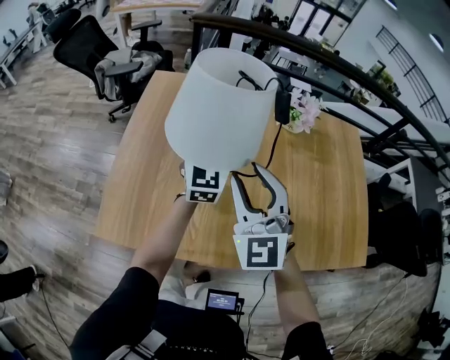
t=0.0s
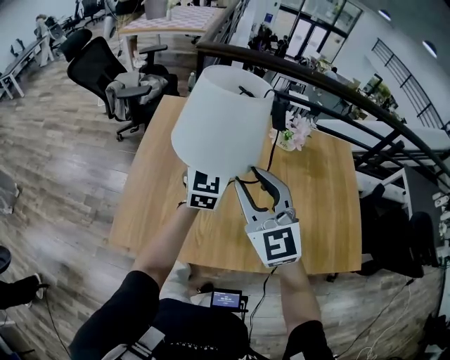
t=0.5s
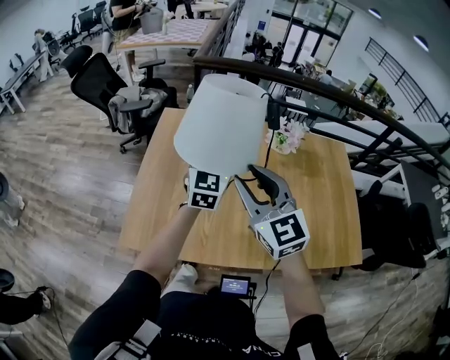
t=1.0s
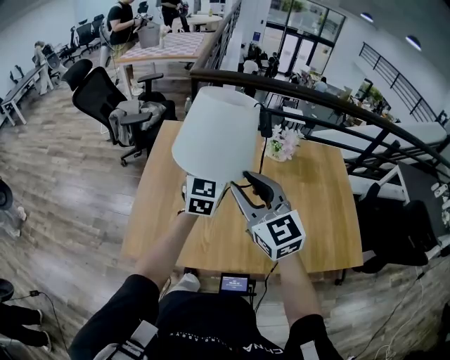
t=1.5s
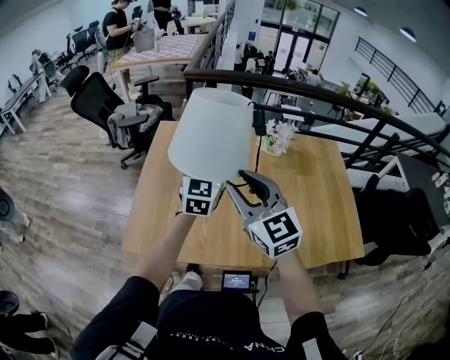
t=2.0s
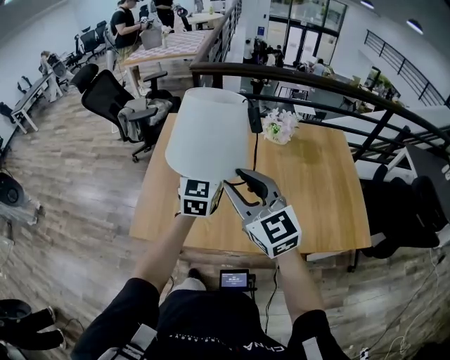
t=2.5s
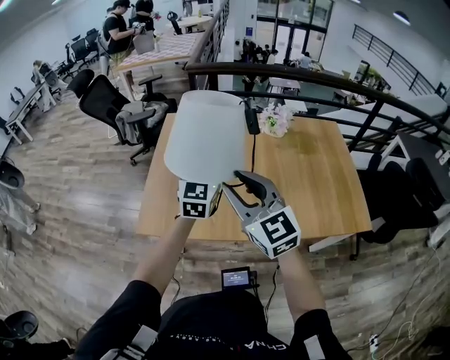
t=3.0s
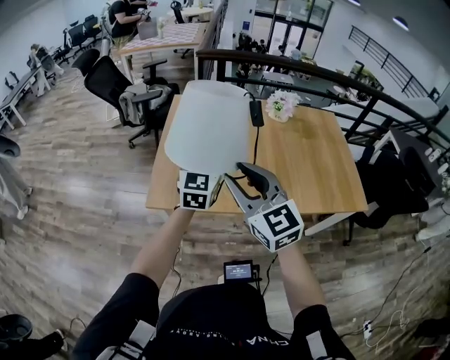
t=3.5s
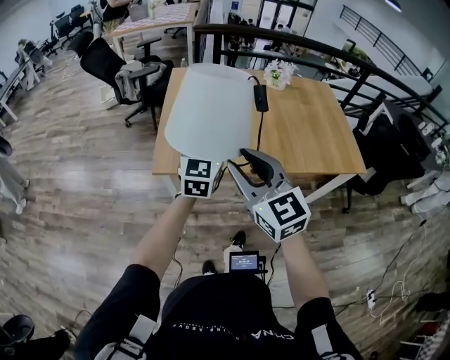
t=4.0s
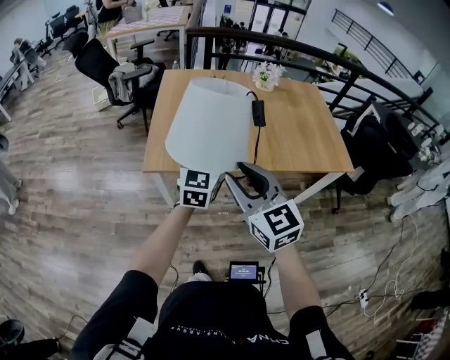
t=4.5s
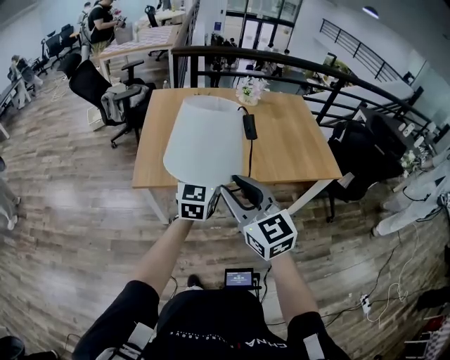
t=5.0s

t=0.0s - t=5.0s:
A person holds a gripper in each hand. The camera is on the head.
t=0.0s - t=2.5s: Both grippers move backward and upward, approximately 20 cm. The right gripper turns by some 30 degrees.
t=2.5s - t=5.0s: The two grippers go approximately 35 cm backward.

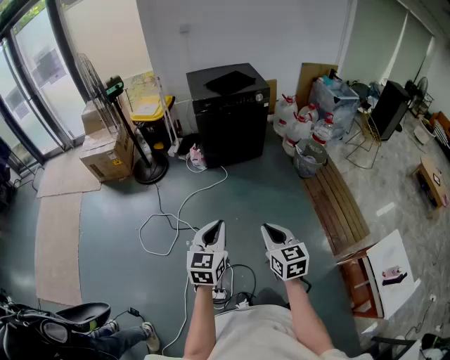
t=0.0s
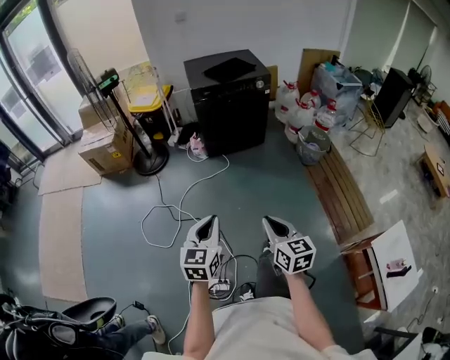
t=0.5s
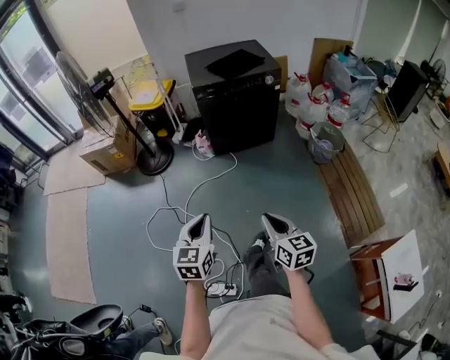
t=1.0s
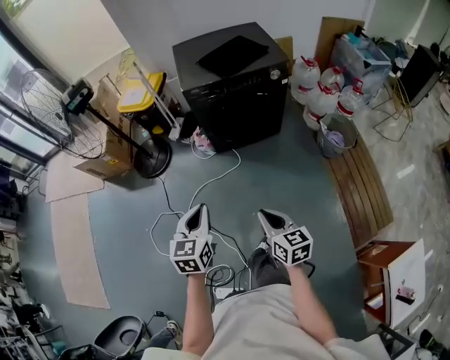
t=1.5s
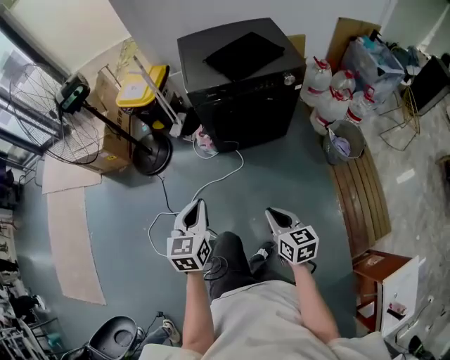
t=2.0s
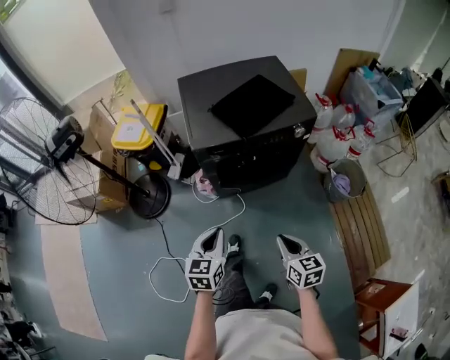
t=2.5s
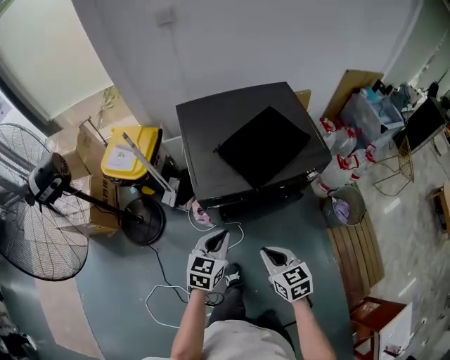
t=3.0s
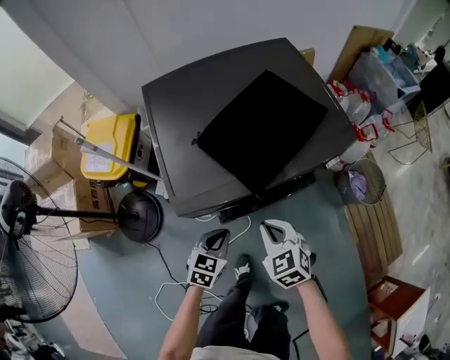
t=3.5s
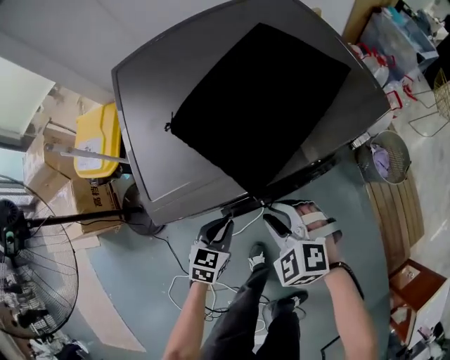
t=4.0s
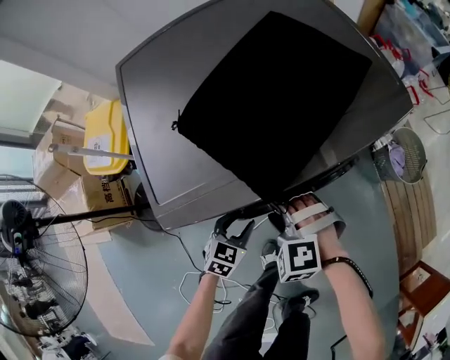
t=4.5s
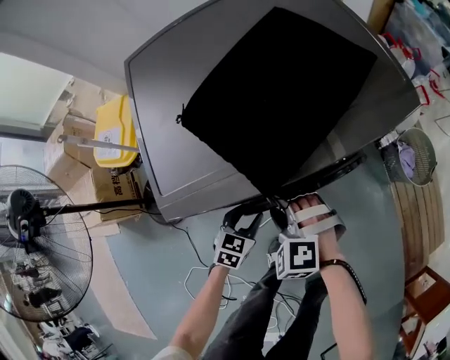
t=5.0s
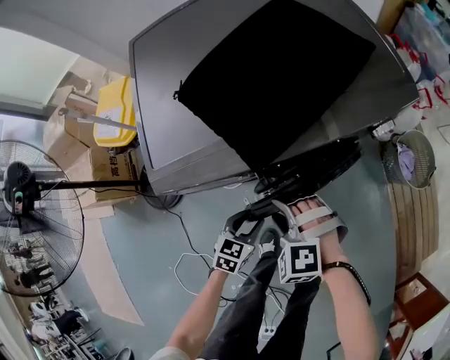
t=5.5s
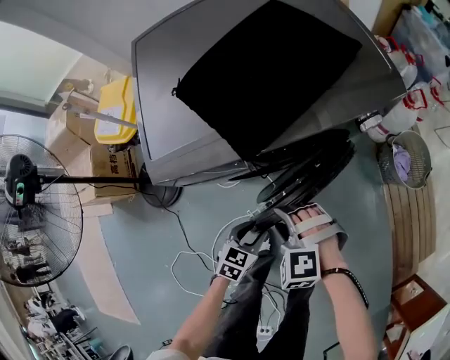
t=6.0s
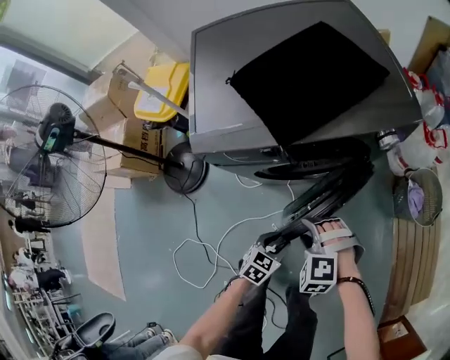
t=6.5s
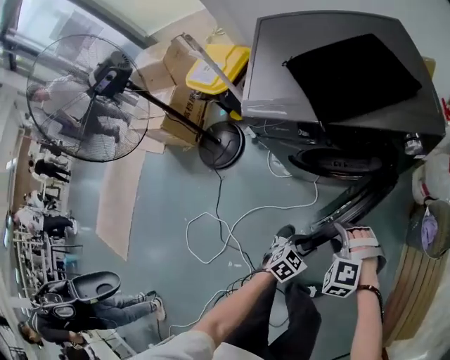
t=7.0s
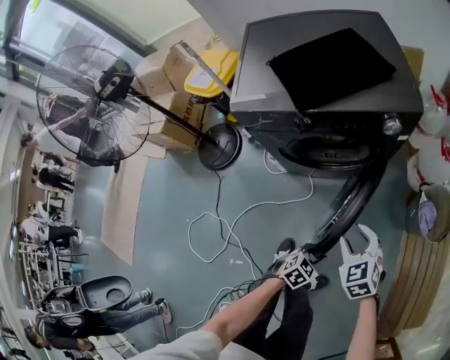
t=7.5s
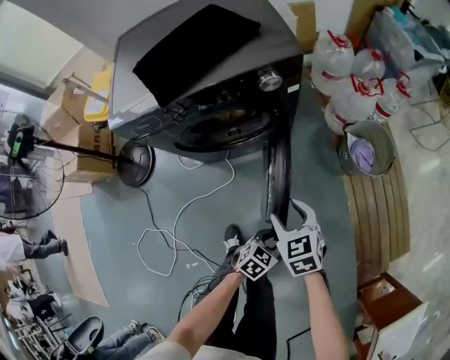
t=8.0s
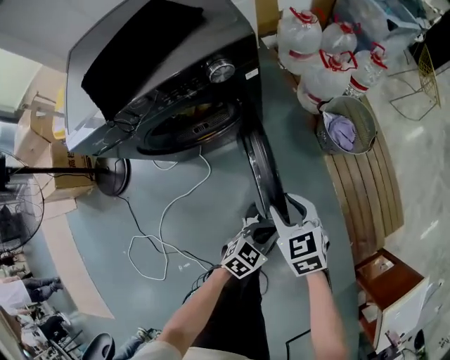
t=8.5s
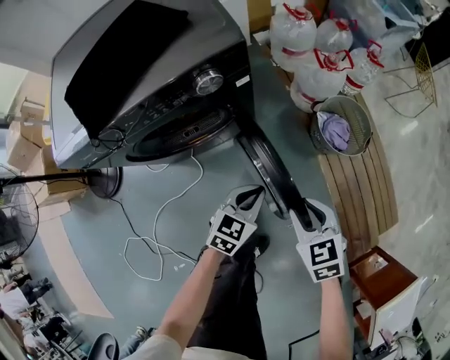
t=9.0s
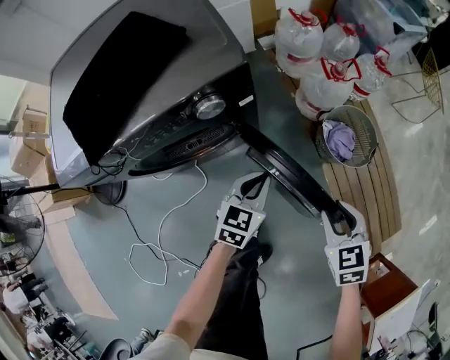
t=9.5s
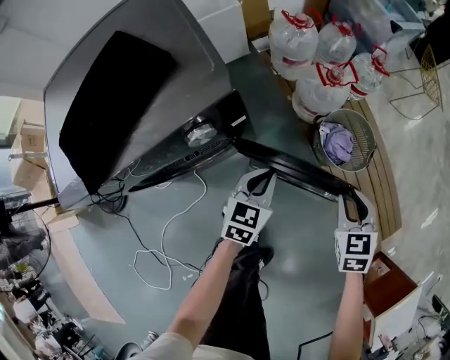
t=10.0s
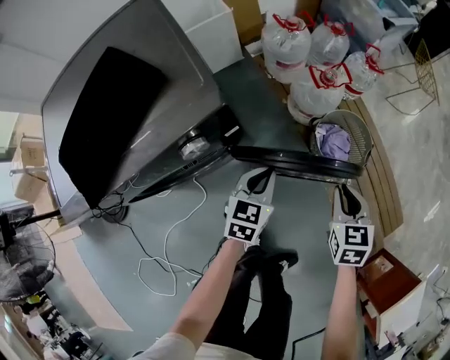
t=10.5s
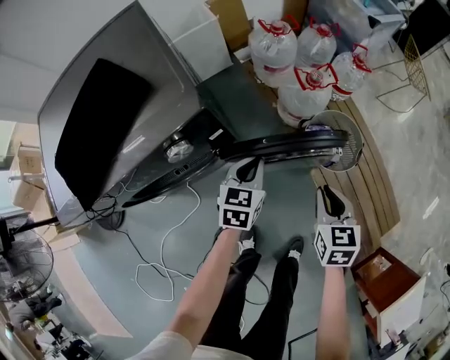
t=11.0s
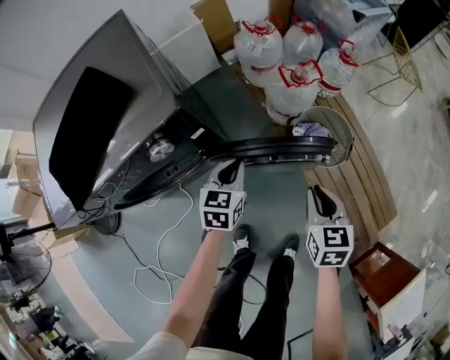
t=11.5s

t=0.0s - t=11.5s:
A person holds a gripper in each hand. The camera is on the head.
t=0.0s - t=2.0s: Both grippers are carried forward, roughly 40 cm.
t=2.0s - t=4.0s: The two grippers travel together, forward, roughly 50 cm. The left gripper is displaced downward by some 35 cm, and rotates about 40 degrees. The right gripper rolls counterclockwise, seen from behind, by about 60 degrees, and opens its fingers.
t=4.0s - t=6.0s: The right gripper heads backward and downward, covering approximately 10 cm, and turns by some 20 degrees. The left gripper shifts roughly 15 cm backward, to the right and downward, and opens.
t=6.0s - t=7.5s: The grippers both shift to the right and backward by about 25 cm. The right gripper swivels some 40 degrees.
t=7.5s - t=9.5s: The right gripper goes some 30 cm to the right and forward, and swivels approximately 40 degrees, while the left gripper heads forward, covering roughly 30 cm, swivels about 20 degrees, and closes its fingers.
t=9.5s - t=11.5s: Both grippers travel together forward, roughly 10 cm. The right gripper turns by about 30 degrees.

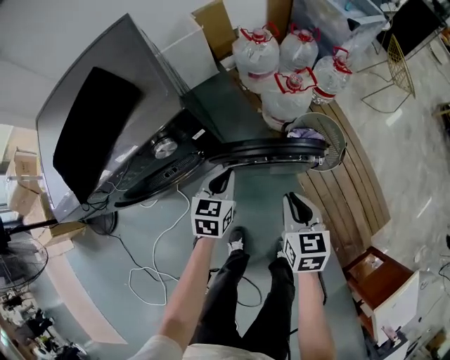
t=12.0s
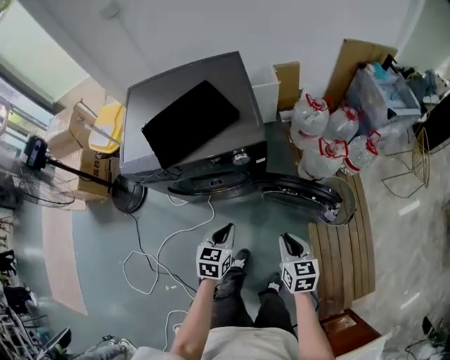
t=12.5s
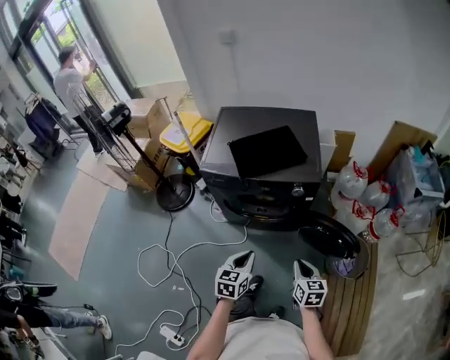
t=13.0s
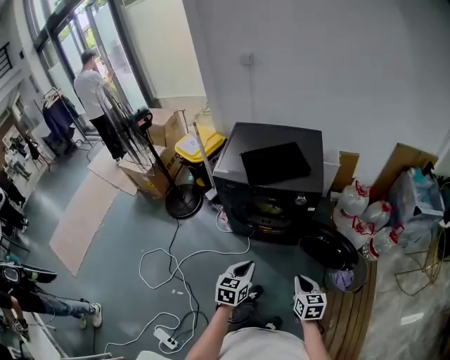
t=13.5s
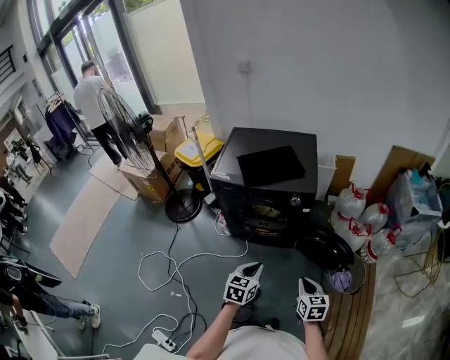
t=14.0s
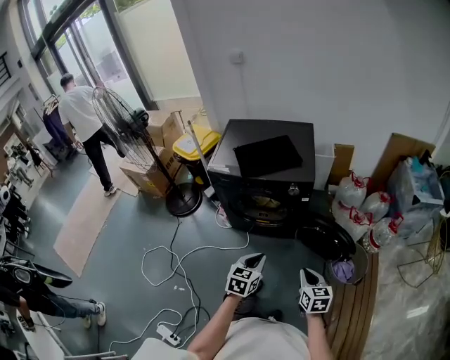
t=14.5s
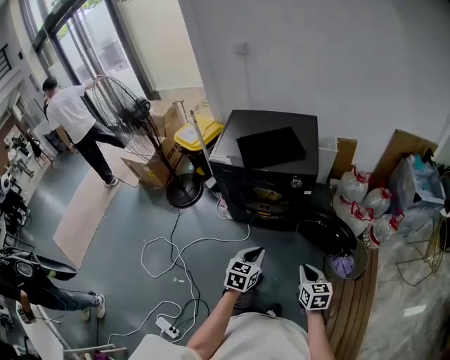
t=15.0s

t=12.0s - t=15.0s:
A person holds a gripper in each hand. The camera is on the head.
t=12.0s - t=13.5s: The left gripper changes place by about 50 cm, and swivels approximately 40 degrees. Meanwhile the right gripper changes place by roughly 30 cm, and changes its angle by approximately 40 degrees.
t=13.5s - t=15.0s: The left gripper goes roughly 5 cm to the right.

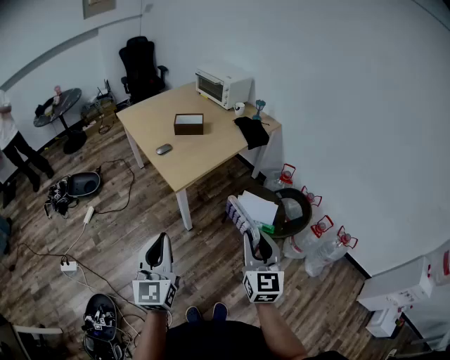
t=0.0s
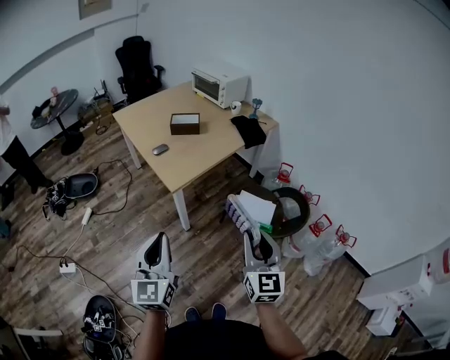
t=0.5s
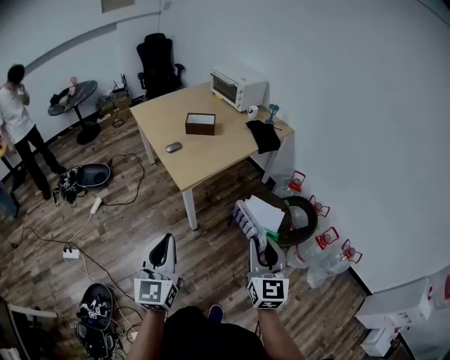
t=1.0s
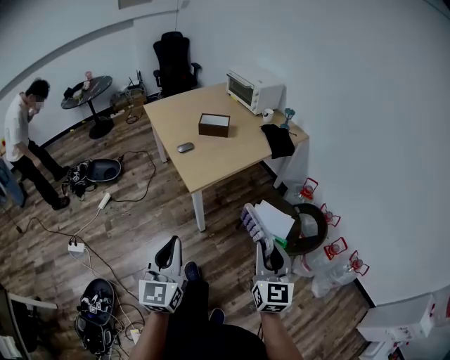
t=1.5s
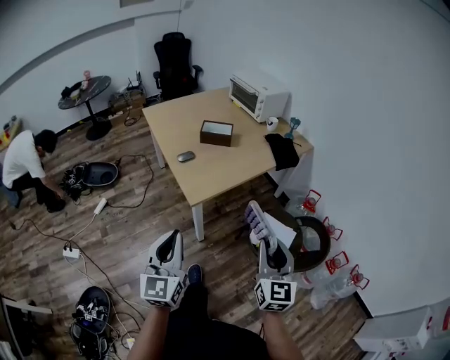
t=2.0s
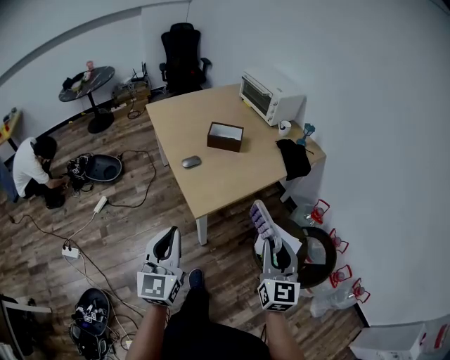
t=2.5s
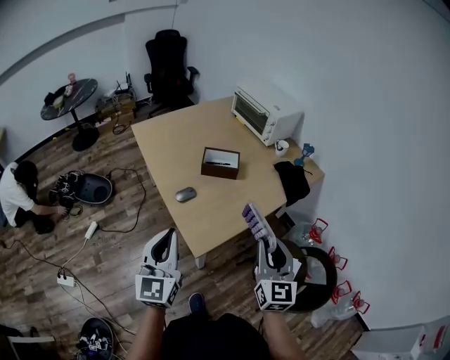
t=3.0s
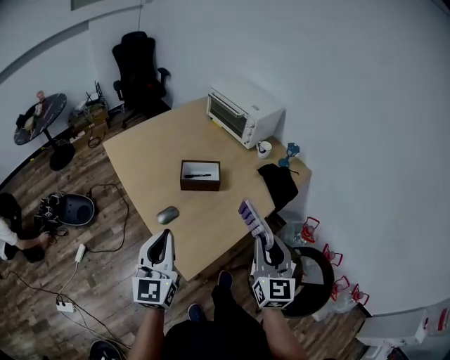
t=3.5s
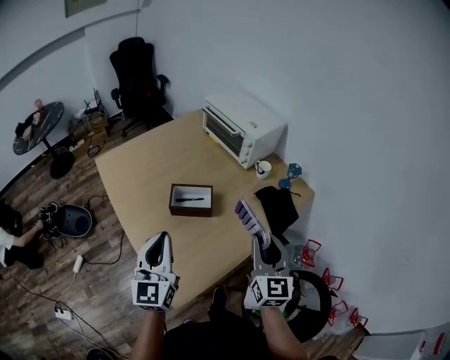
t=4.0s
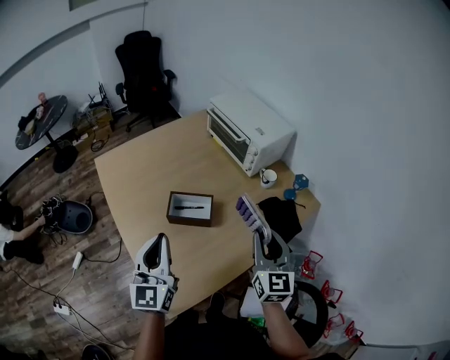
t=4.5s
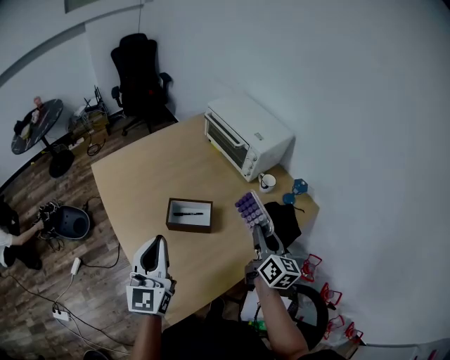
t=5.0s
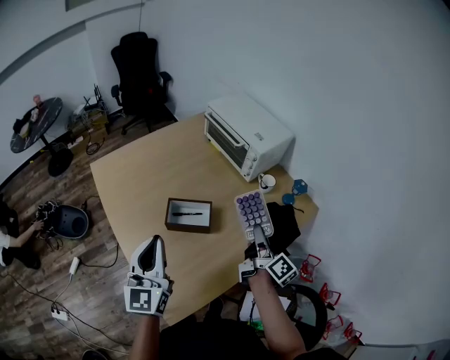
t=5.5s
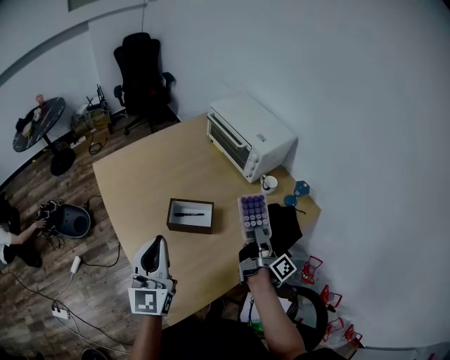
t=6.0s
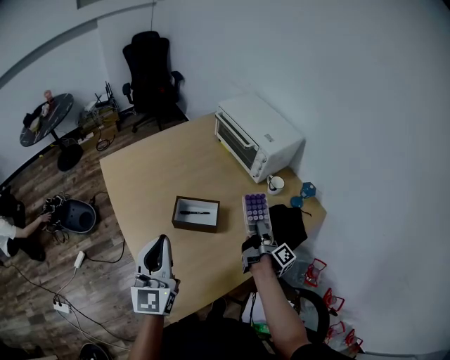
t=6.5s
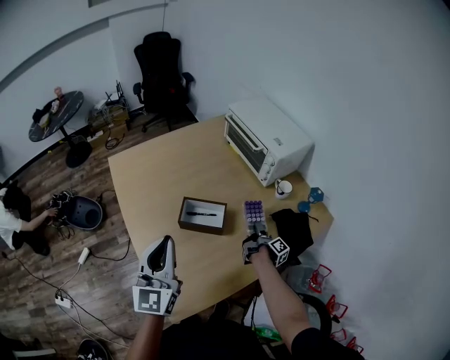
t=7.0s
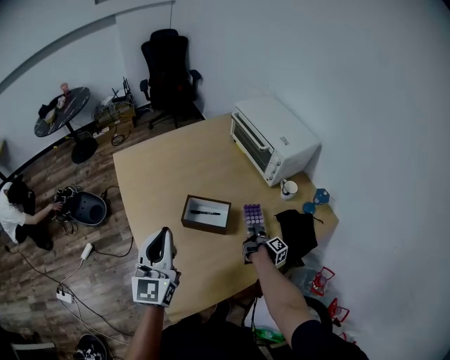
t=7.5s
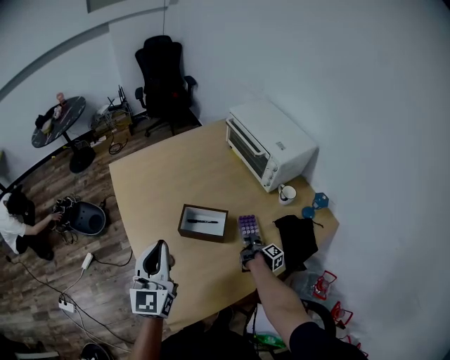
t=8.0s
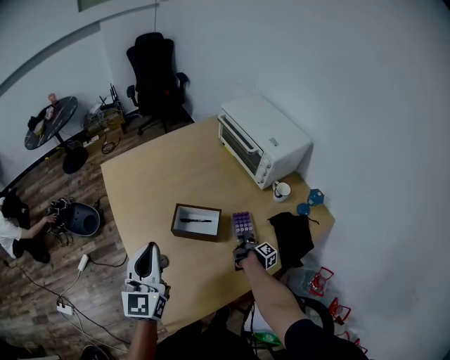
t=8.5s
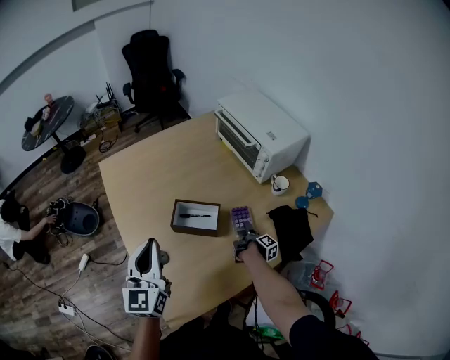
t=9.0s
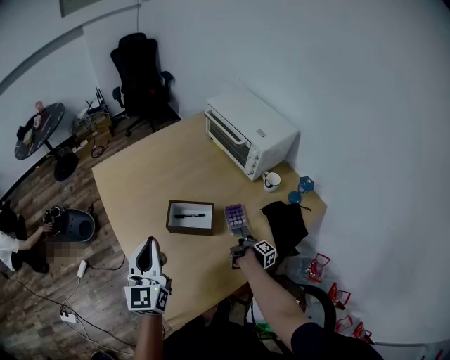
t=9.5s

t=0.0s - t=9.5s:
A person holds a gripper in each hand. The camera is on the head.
t=0.0s - t=2.0s: The two grippers go about 10 cm forward.
t=2.0s - t=4.0s: Both grippers are carried forward, approximately 50 cm.
t=4.0s - t=5.5s: The right gripper travels forward and downward by some 15 cm, and twists some 60 degrees clockwise, seen from behind; the left gripper heads forward, covering approximately 10 cm.
t=5.5s - t=7.5s: The right gripper shifts approximately 25 cm downward, and turns by about 40 degrees.
t=7.5s - t=9.5s: The right gripper opens up.
